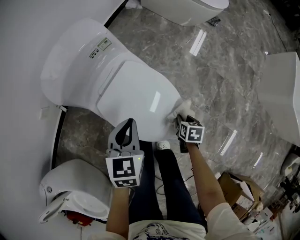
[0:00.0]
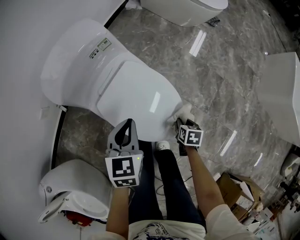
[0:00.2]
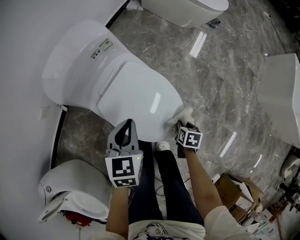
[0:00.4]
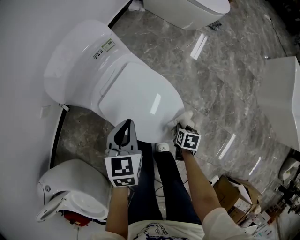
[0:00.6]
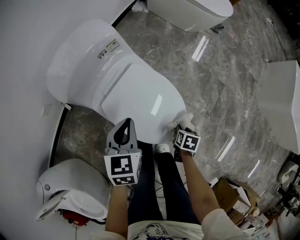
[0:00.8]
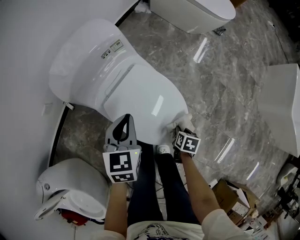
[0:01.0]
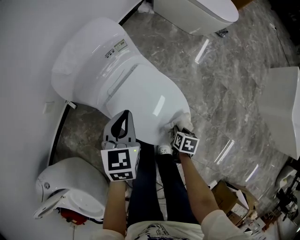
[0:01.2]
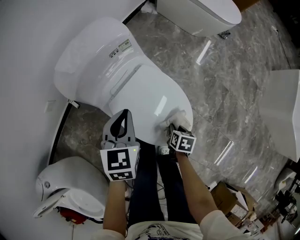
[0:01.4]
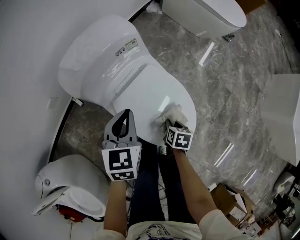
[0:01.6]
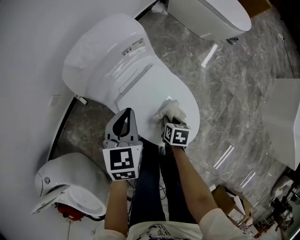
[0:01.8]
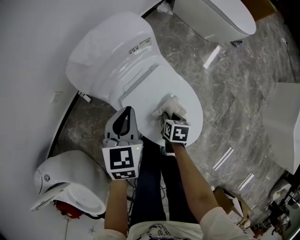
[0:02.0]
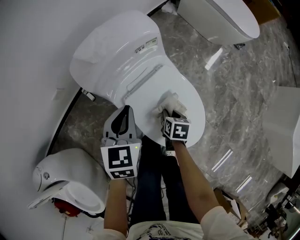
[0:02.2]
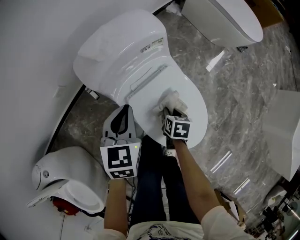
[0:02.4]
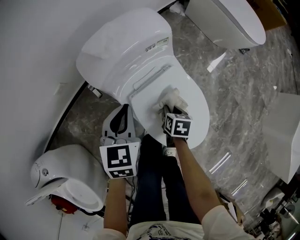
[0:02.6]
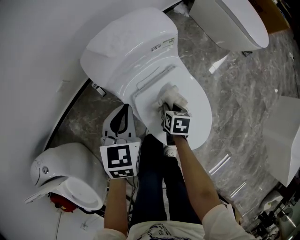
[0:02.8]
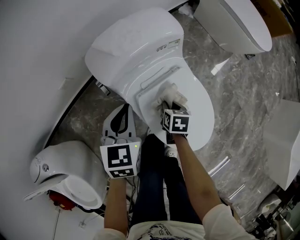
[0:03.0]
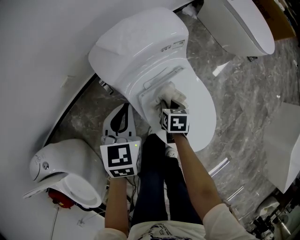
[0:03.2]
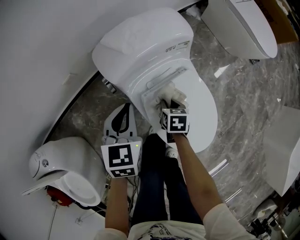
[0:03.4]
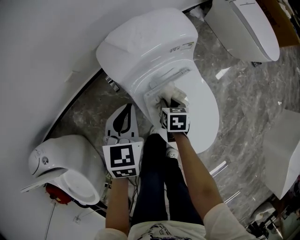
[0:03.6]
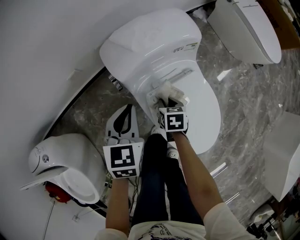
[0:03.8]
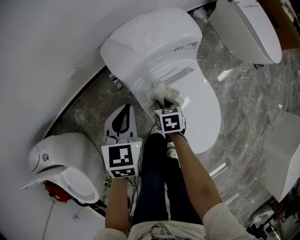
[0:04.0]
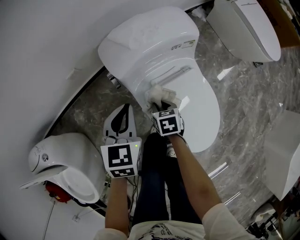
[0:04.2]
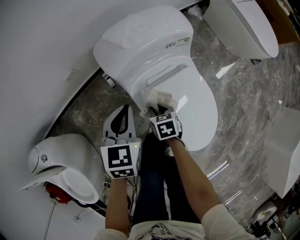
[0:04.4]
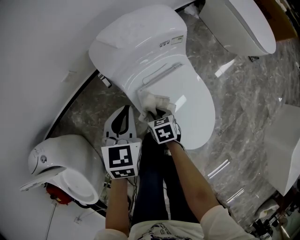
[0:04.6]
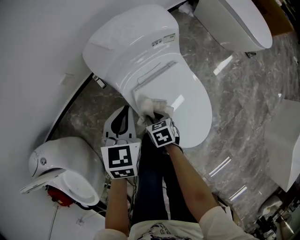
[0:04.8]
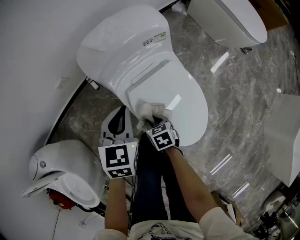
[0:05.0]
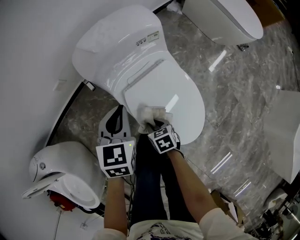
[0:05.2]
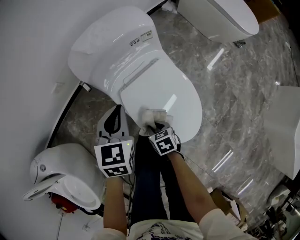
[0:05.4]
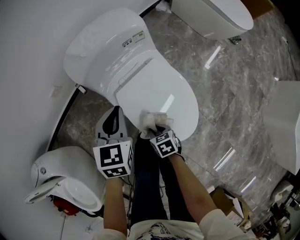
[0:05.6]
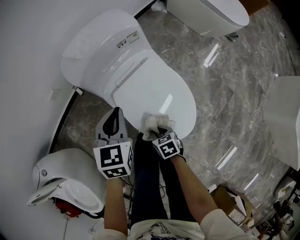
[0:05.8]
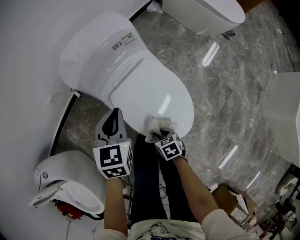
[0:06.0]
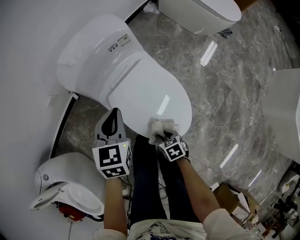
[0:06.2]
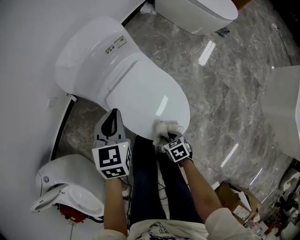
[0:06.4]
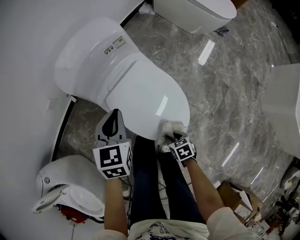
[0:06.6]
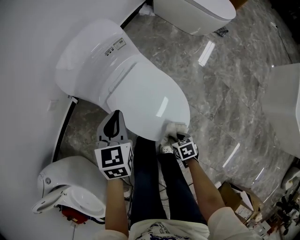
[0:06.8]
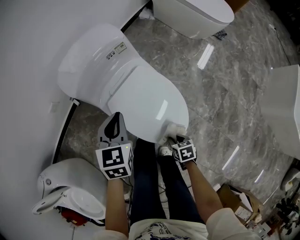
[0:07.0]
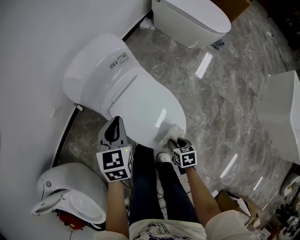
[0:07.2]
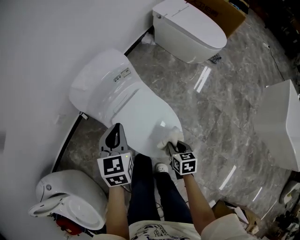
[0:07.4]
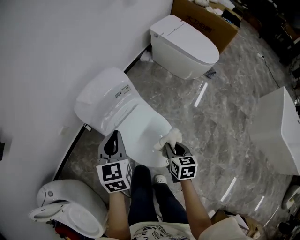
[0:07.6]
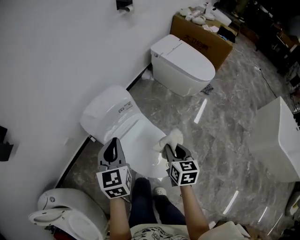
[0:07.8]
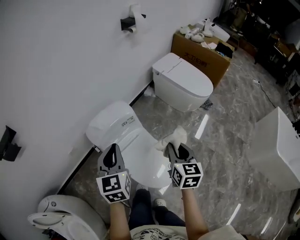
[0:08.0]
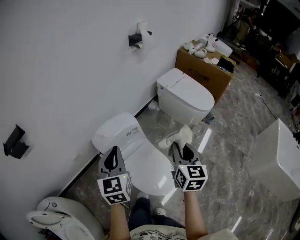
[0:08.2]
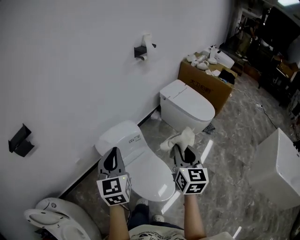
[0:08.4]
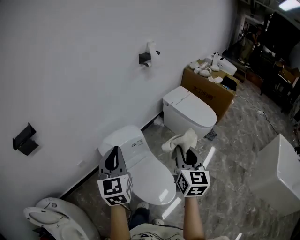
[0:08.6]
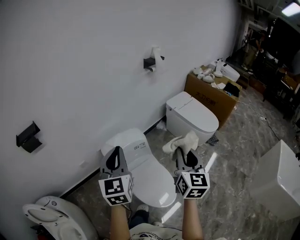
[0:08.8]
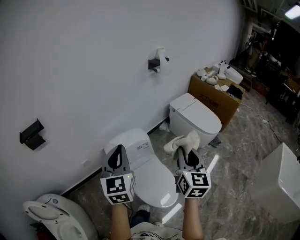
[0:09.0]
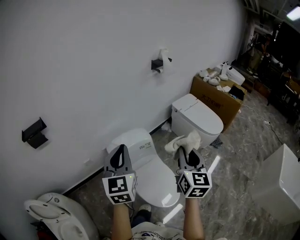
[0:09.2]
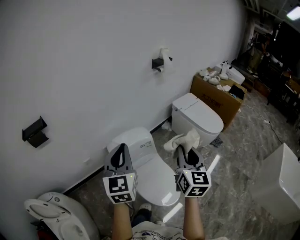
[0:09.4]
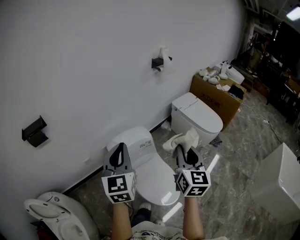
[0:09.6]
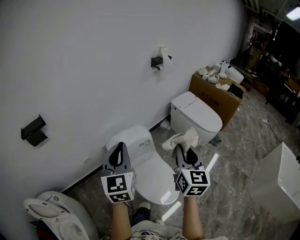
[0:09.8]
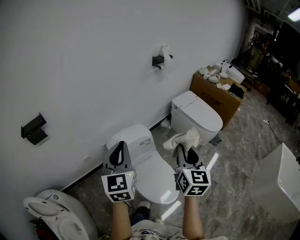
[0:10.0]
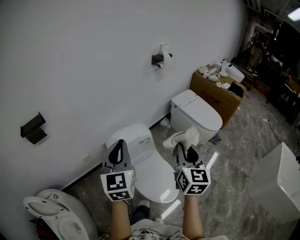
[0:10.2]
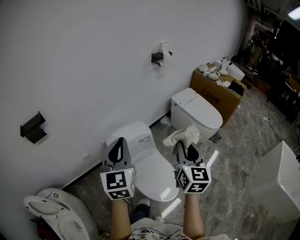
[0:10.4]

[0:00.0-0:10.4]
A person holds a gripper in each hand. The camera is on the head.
0:00.0 to 0:01.4: The left gripper ends up roughly 10 cm from where it was; the right gripper ends up roughly 10 cm from where it was.
0:01.4 to 0:03.0: The right gripper is displaced to the left and forward by approximately 25 cm, and turns by about 20 degrees, while the left gripper moves to the left, about 15 cm.
0:03.0 to 0:04.4: The right gripper is displaced to the left by about 10 cm, and turns by roughly 20 degrees.
0:04.4 to 0:06.0: The left gripper travels to the right and backward by roughly 15 cm. Meanwhile the right gripper moves backward, about 20 cm.
0:06.0 to 0:07.4: The right gripper shifts about 20 cm upward and to the right, and rotates roughly 30 degrees. Meanwhile the left gripper shifts about 10 cm upward.
0:07.4 to 0:09.0: Both grippers move upward, about 40 cm. The left gripper angles its fingers upward, by some 30 degrees. Meanwhile the right gripper angles its fingers upward, by approximately 50 degrees.
0:09.0 to 0:10.4: The grippers make only small movements.

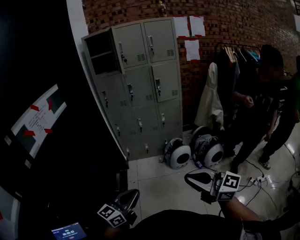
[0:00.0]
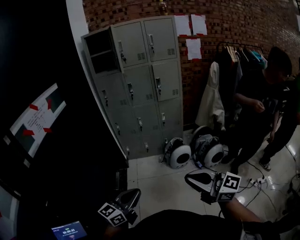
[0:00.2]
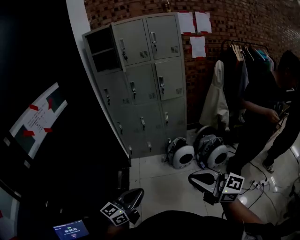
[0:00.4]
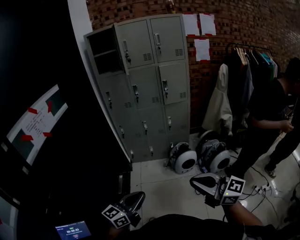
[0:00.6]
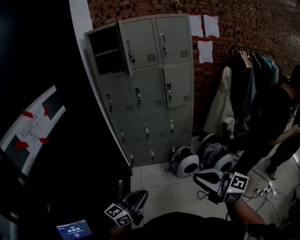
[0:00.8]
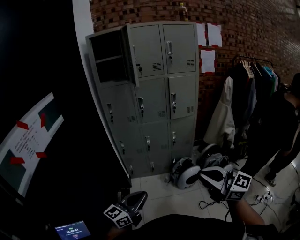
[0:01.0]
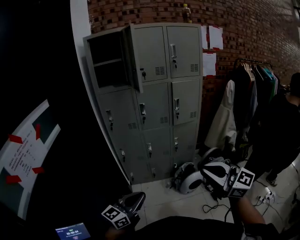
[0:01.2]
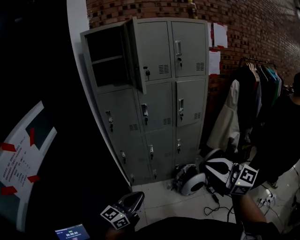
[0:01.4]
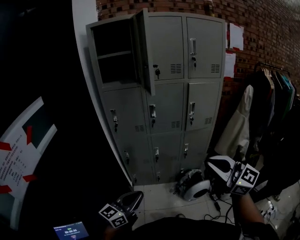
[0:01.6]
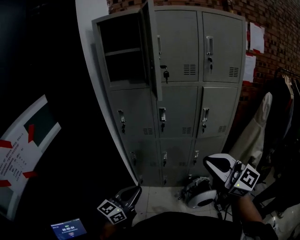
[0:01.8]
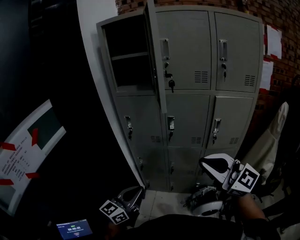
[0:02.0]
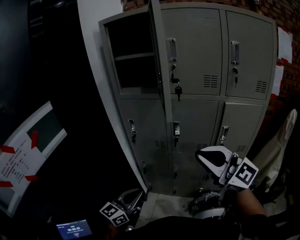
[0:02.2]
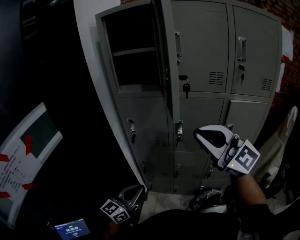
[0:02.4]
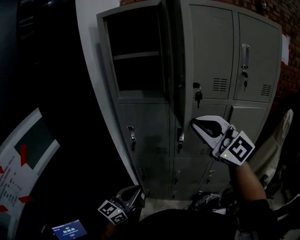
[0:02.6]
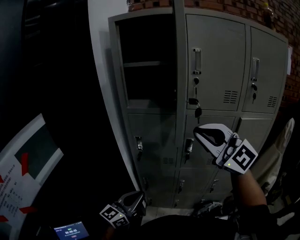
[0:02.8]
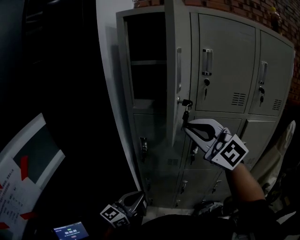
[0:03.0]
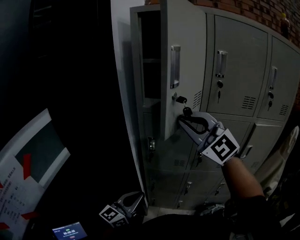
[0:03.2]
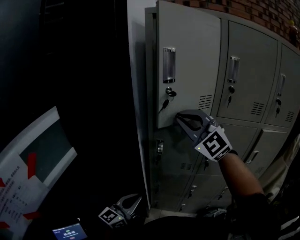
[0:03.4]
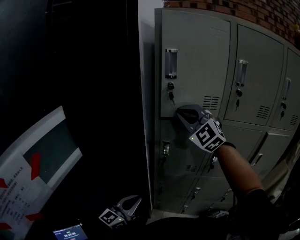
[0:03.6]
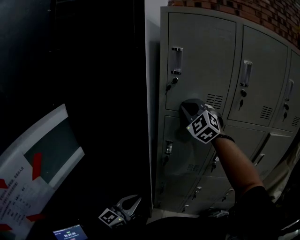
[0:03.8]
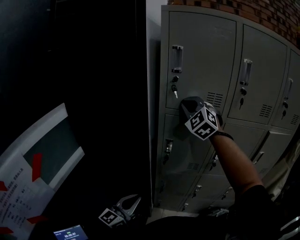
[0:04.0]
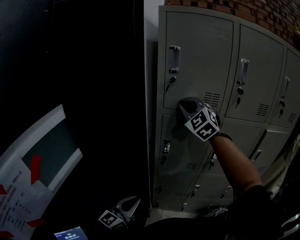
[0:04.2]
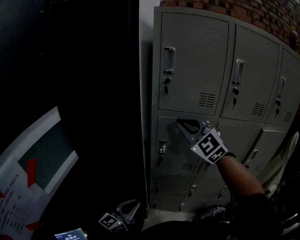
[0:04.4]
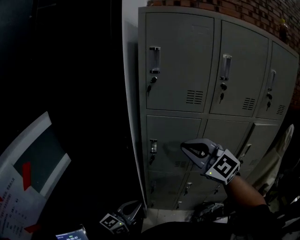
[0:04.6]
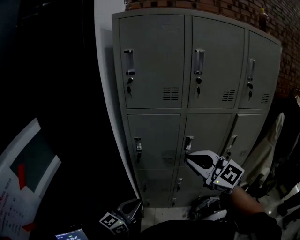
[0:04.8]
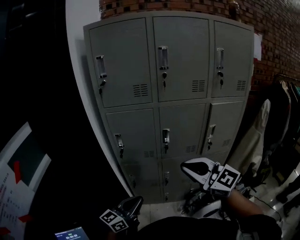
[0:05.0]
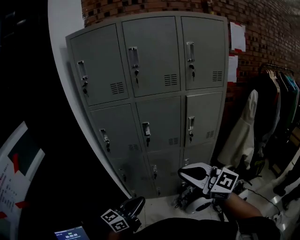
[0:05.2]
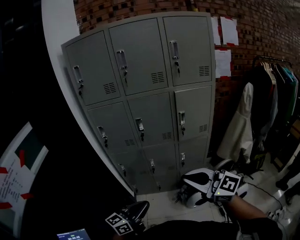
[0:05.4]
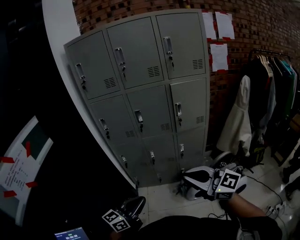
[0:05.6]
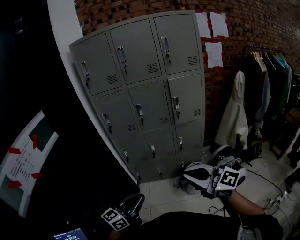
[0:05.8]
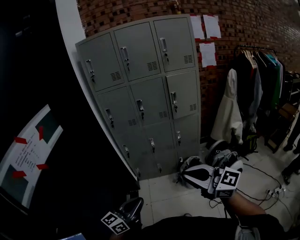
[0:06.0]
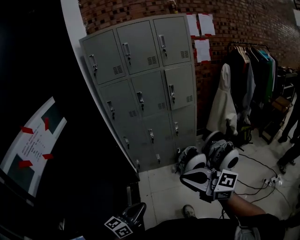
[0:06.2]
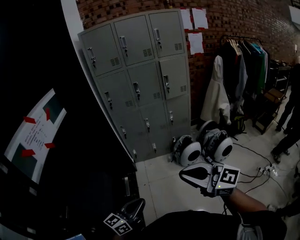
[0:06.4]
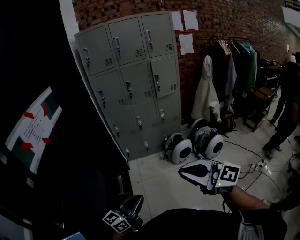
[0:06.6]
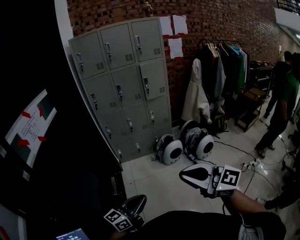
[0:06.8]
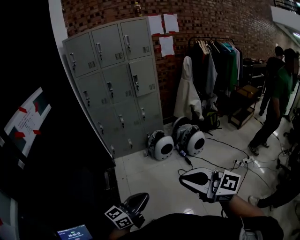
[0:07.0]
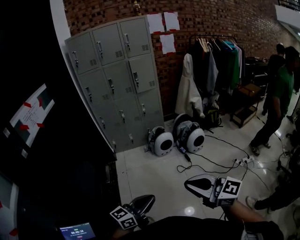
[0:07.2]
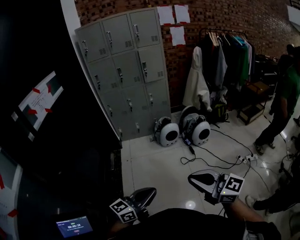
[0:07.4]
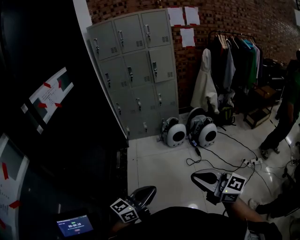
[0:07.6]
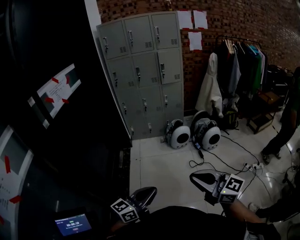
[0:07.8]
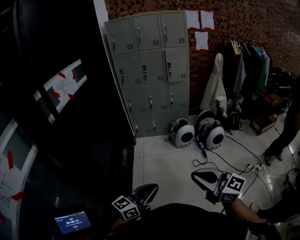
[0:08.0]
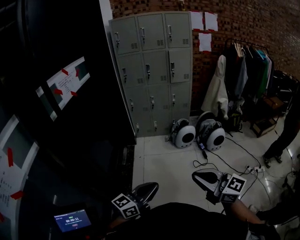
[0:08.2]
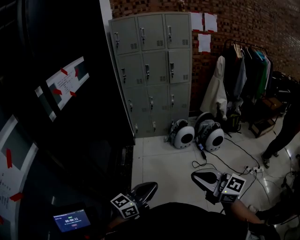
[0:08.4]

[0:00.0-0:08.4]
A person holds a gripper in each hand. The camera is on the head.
0:00.0 to 0:01.4: The grippers both shift forward by some 40 cm.
0:01.4 to 0:02.8: The two grippers go about 40 cm forward. The right gripper swivels approximately 30 degrees.
0:02.8 to 0:04.2: The right gripper travels forward and to the left by approximately 25 cm, and rotates some 40 degrees. Meanwhile the left gripper is displaced to the left by some 15 cm.
0:04.2 to 0:05.6: The pair of grippers is taken backward and to the right, some 60 cm. The right gripper twists roughly 50 degrees clockwise, seen from behind; the left gripper rotates about 20 degrees.
0:05.6 to 0:07.0: The pair of grippers is taken backward, roughly 60 cm.
0:07.0 to 0:08.4: The two grippers go roughly 10 cm backward. The right gripper moves approximately 10 cm to the right and comes back.

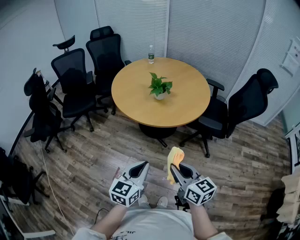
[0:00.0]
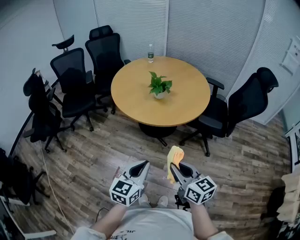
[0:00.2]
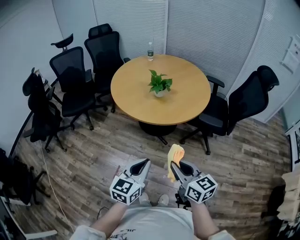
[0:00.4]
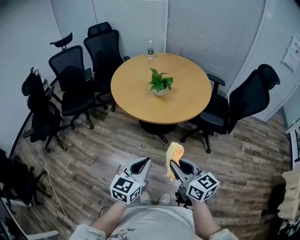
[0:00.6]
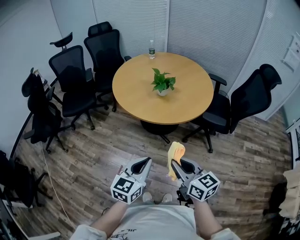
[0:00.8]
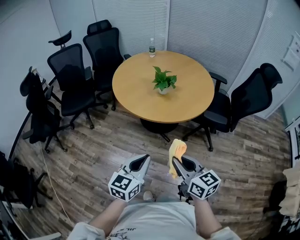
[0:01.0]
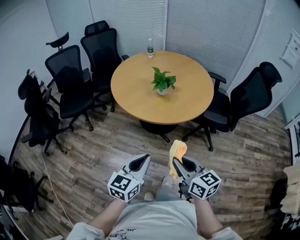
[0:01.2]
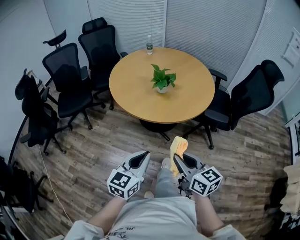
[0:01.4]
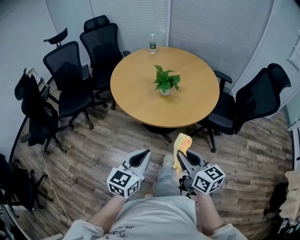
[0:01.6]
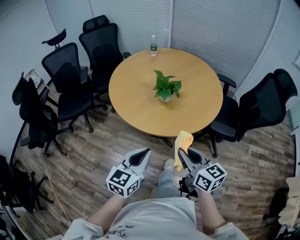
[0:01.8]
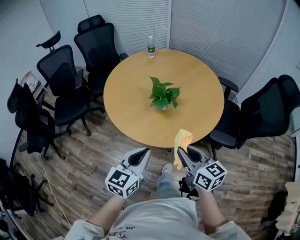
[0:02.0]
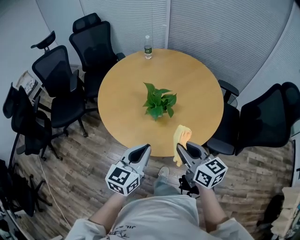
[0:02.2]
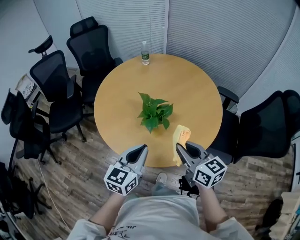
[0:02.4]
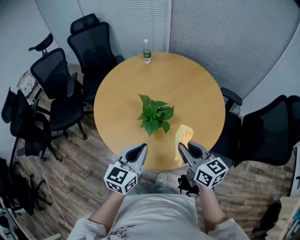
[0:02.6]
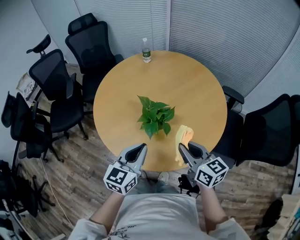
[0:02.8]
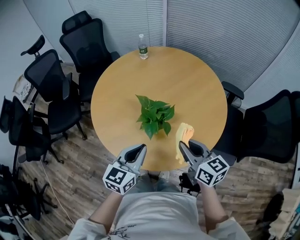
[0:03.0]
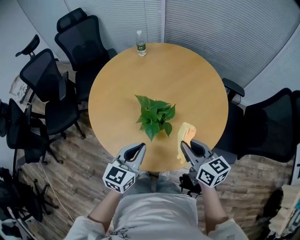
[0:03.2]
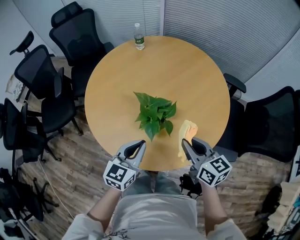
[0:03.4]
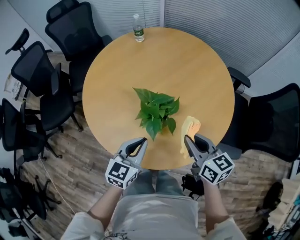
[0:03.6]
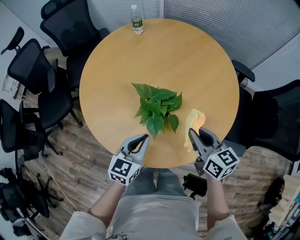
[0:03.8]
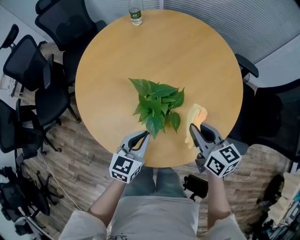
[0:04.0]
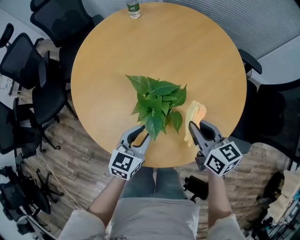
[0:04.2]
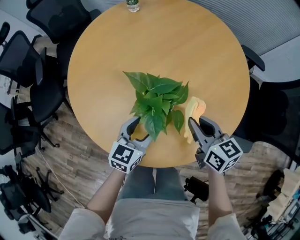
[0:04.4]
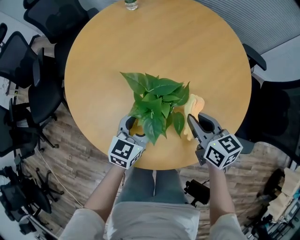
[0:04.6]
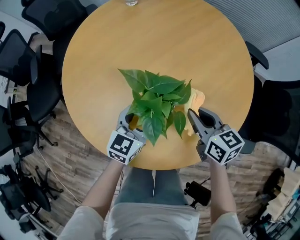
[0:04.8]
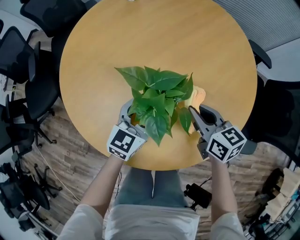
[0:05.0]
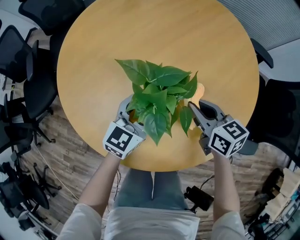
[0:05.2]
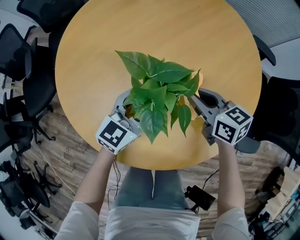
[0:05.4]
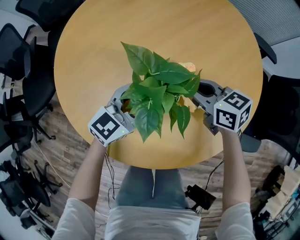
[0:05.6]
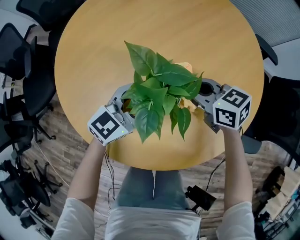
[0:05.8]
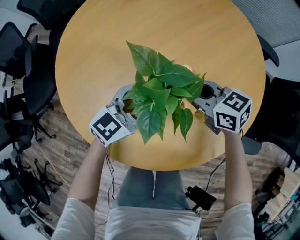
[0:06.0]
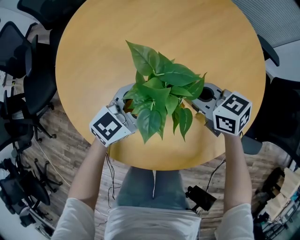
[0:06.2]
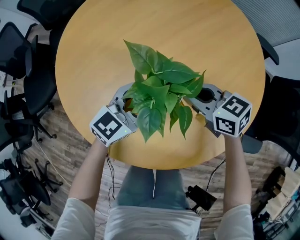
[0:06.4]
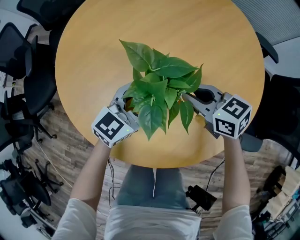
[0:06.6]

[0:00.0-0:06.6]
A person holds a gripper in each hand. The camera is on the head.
0:00.0 to 0:01.6: The two grippers go approximately 15 cm forward.
0:01.6 to 0:03.2: The two grippers go roughly 40 cm forward.
0:03.2 to 0:05.0: The grippers both shift downward and forward by roughly 25 cm. The left gripper opens.
0:05.0 to 0:06.6: The right gripper rotates some 20 degrees.
